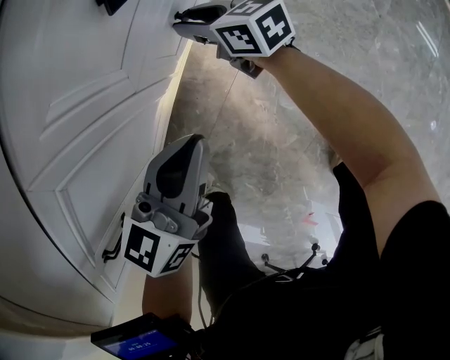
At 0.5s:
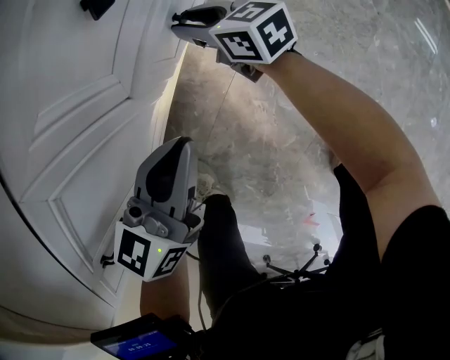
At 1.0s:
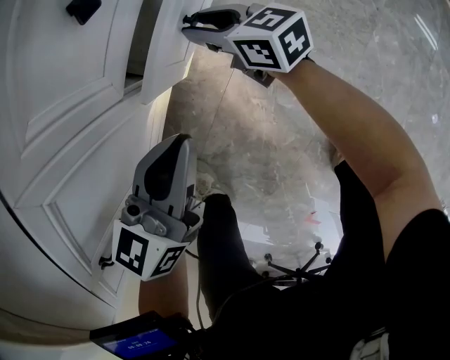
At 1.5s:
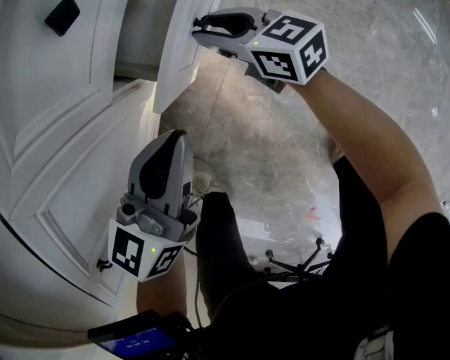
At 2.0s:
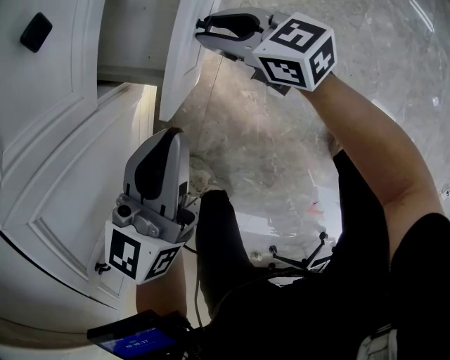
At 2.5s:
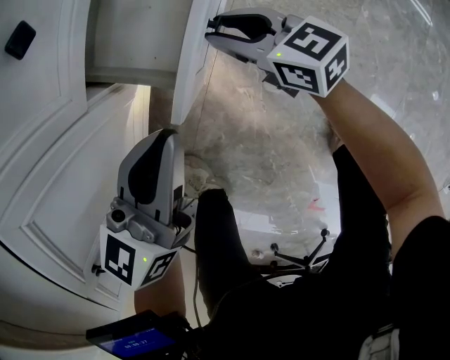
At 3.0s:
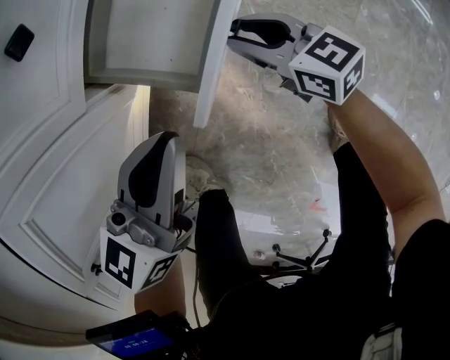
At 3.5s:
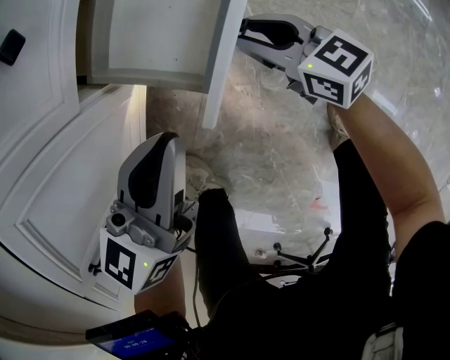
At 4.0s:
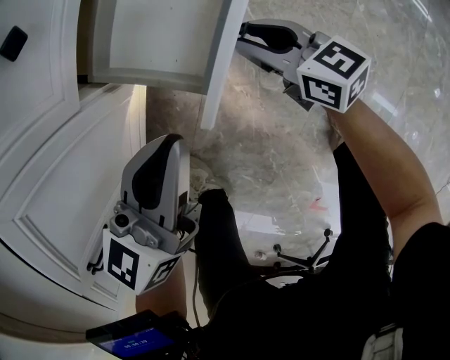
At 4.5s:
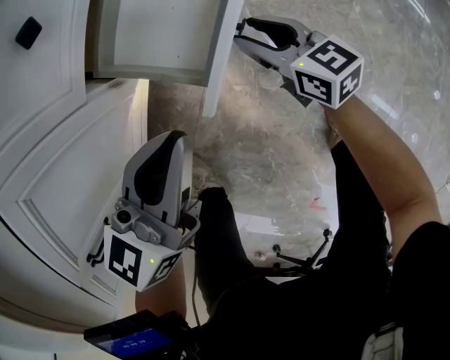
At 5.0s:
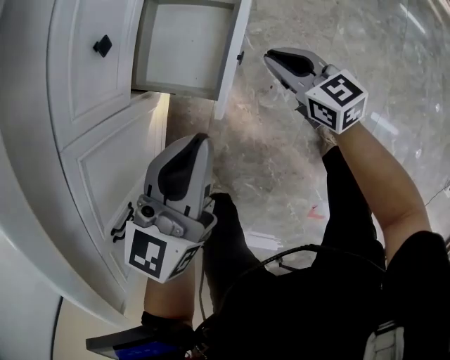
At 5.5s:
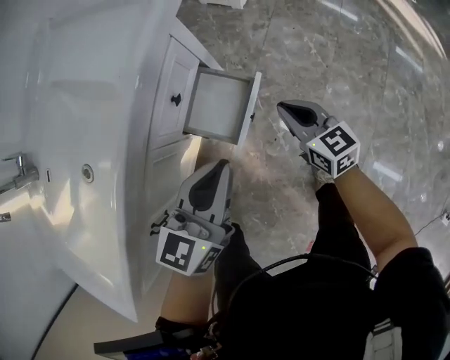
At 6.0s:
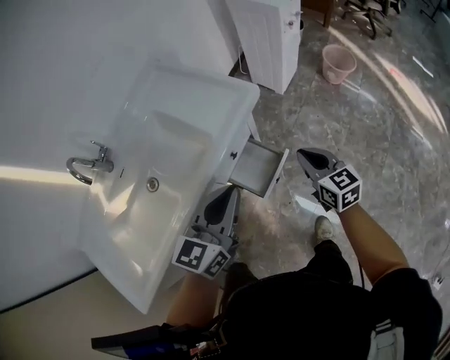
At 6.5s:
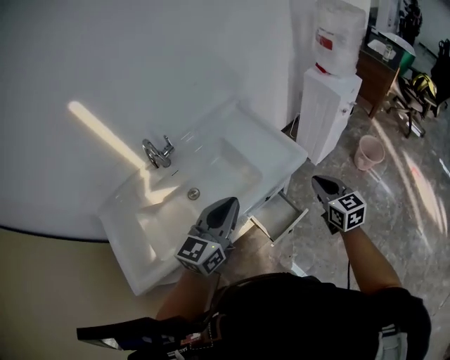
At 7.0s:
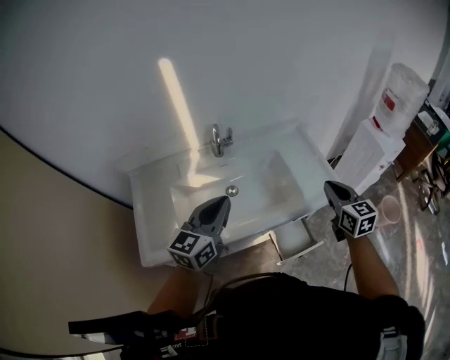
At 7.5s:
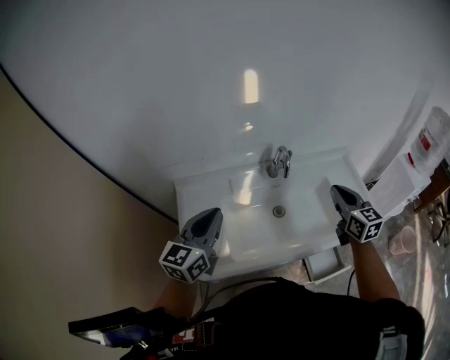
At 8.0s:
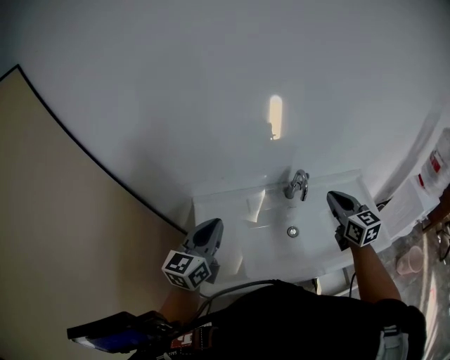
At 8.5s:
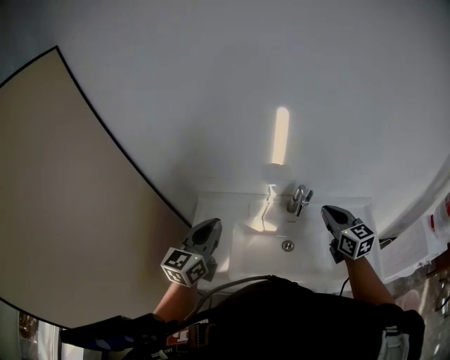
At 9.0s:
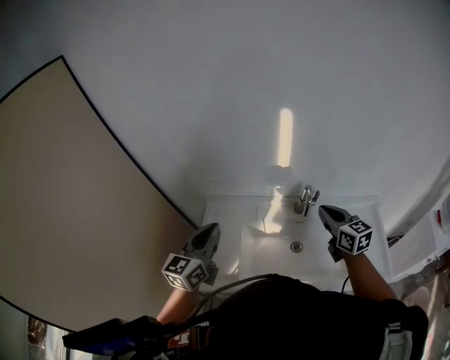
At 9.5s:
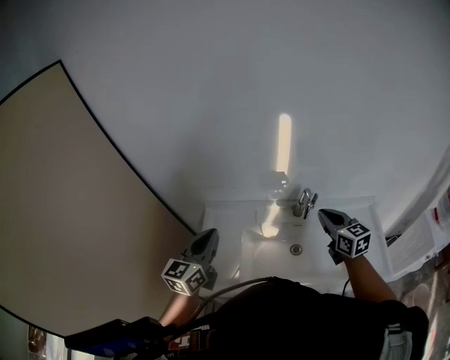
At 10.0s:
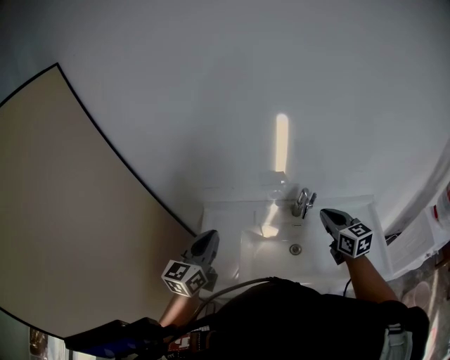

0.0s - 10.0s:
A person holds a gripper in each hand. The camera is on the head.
0.0s - 2.0s: The right gripper travels to the right and backward by some 10 cm.
2.0s - 4.0s: The right gripper goes about 10 cm to the right and backward.
4.0s - 6.0s: Both grippers move upward, some 50 cm. The right gripper rotates some 20 degrees, and closes up.
6.0s - 8.0s: The two grippers travel together, some 60 cm. The left gripper changes its angle by about 50 degrees, while the right gripper swivels approximately 40 degrees.
8.0s - 10.0s: The grippers make only small movements.

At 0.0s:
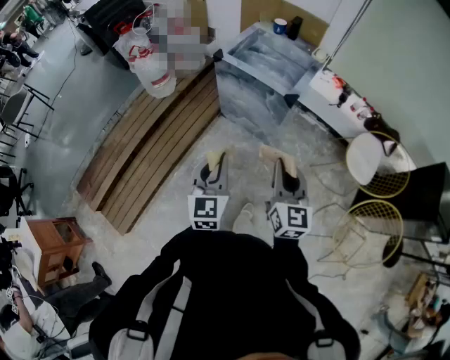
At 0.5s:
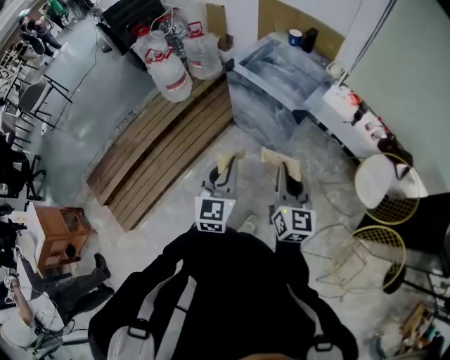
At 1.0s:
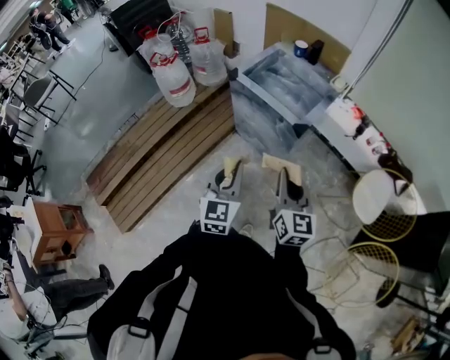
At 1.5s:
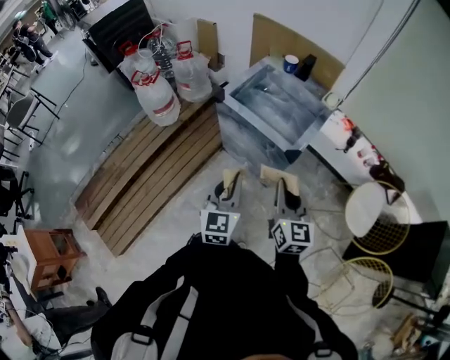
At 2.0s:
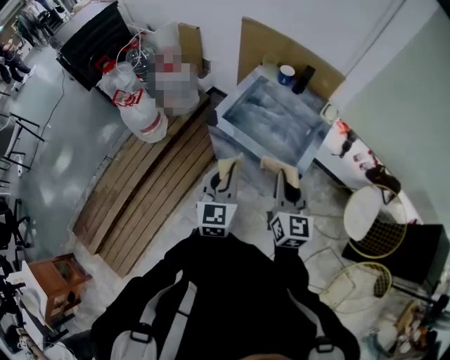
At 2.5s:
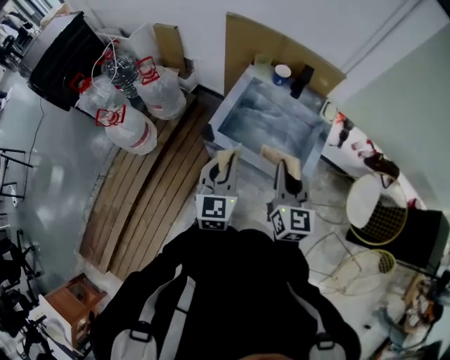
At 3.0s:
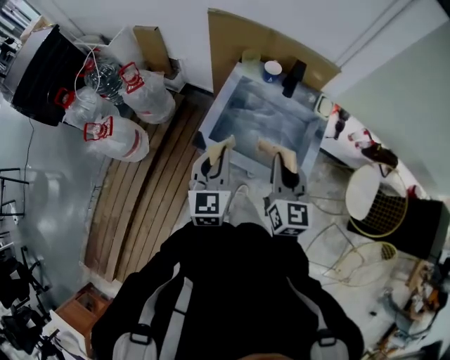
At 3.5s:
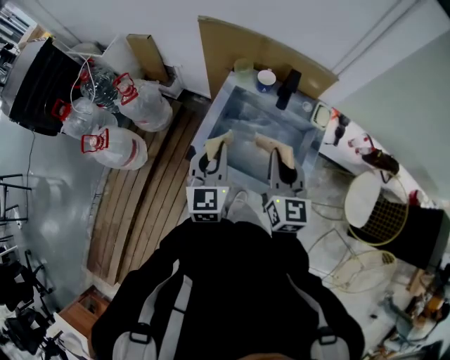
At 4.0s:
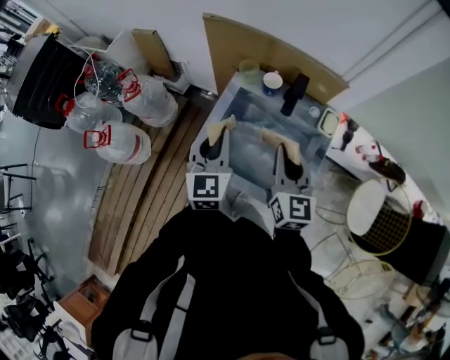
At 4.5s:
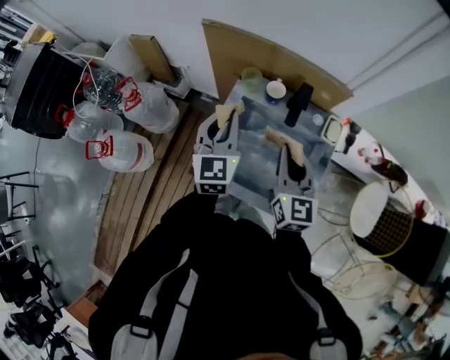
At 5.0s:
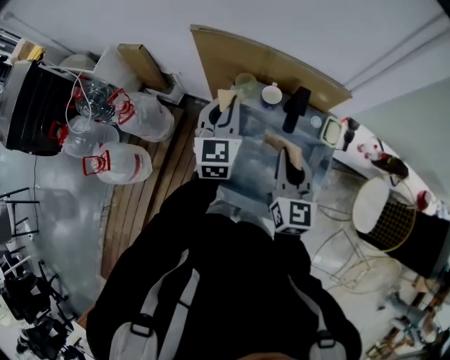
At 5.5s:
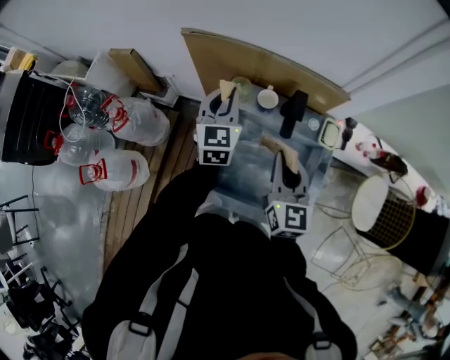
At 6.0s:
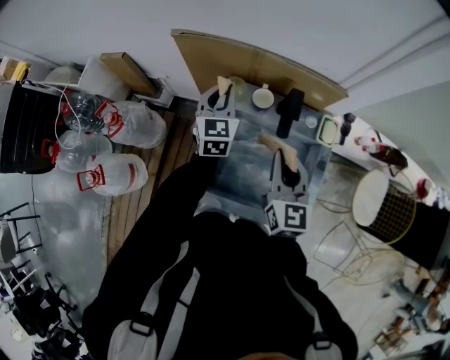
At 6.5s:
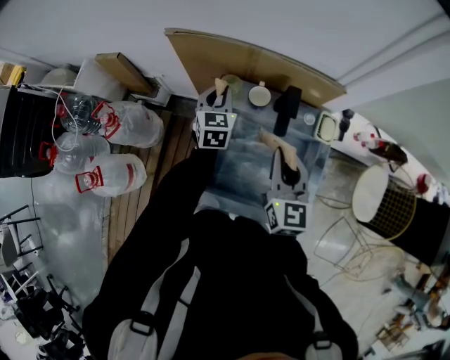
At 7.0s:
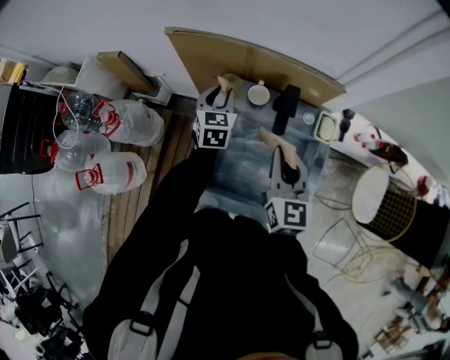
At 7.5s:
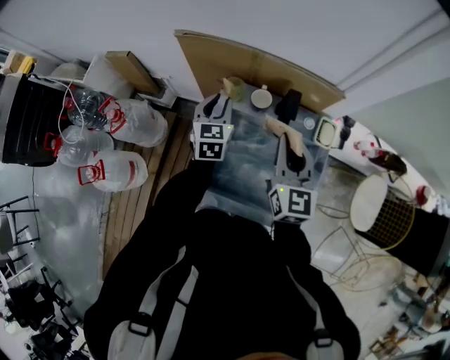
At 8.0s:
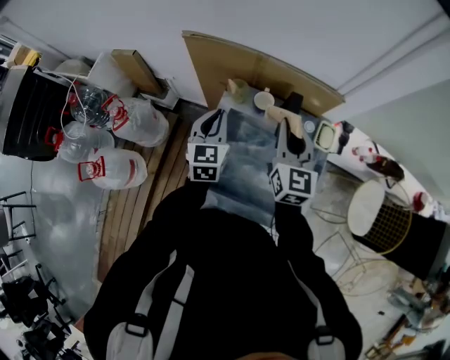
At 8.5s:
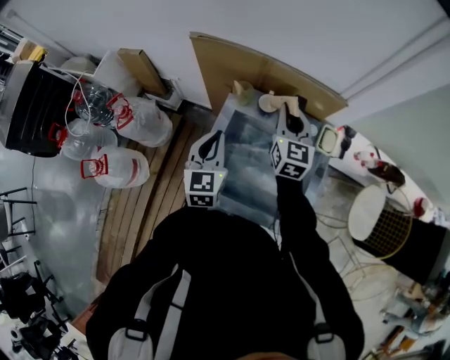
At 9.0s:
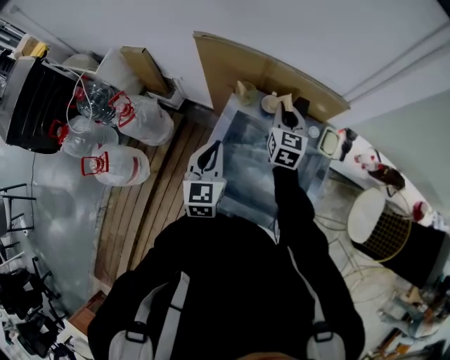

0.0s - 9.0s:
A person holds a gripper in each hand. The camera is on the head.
0.0s - 2.0s: Both grippers travel together forward, about 35 cm.
2.0s - 4.5s: Both grippers travel together forward, some 35 cm.
4.5s - 7.0s: The left gripper moves forward and downward, some 20 cm, while the right gripper travels forward by approximately 5 cm.
7.0s - 9.0s: The right gripper moves forward, some 15 cm, while the left gripper shifts roughly 20 cm backward, and closes up.

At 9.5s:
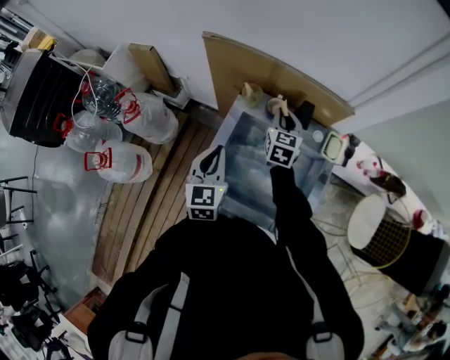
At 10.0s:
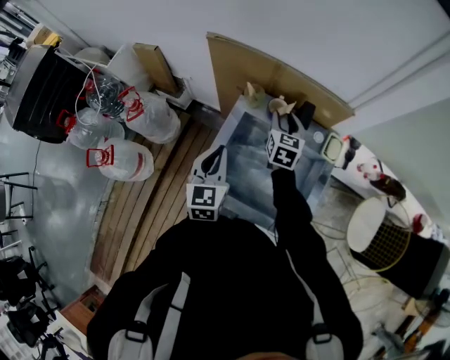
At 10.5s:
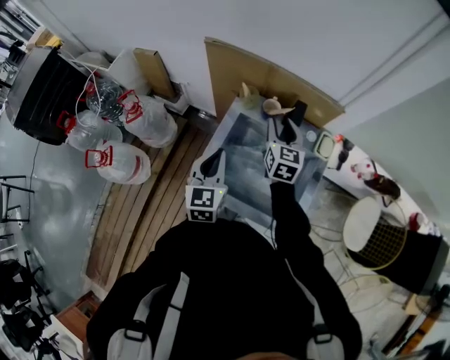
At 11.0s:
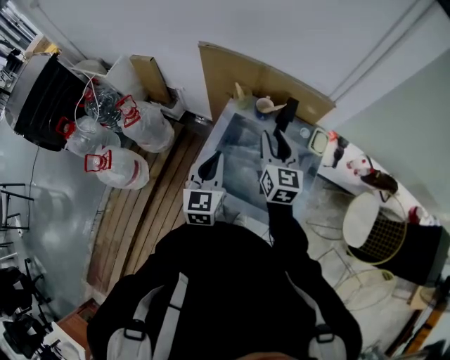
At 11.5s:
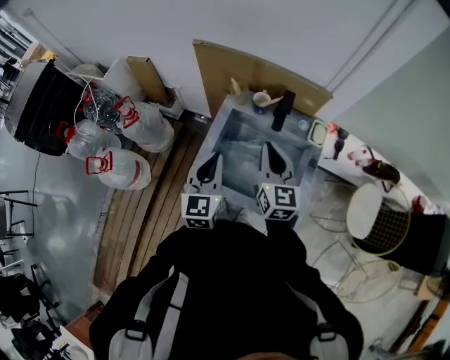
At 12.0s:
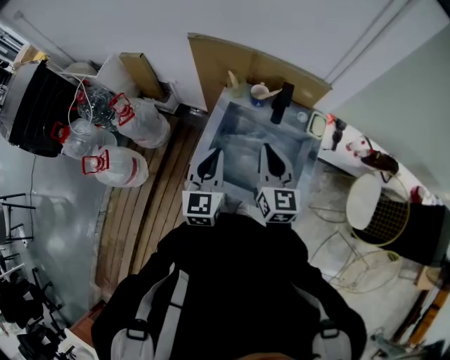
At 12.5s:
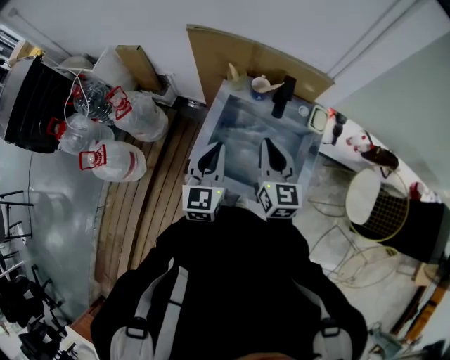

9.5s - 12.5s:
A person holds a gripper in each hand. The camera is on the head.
9.5s - 11.0s: The left gripper moves backward, roughly 5 cm. The right gripper travels backward and upward by roughly 20 cm, and opens its fingers.
11.0s - 12.5s: The right gripper travels backward by some 10 cm, and closes.

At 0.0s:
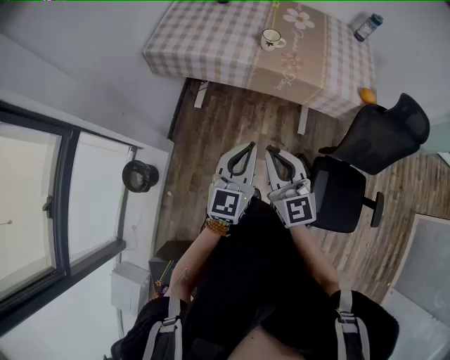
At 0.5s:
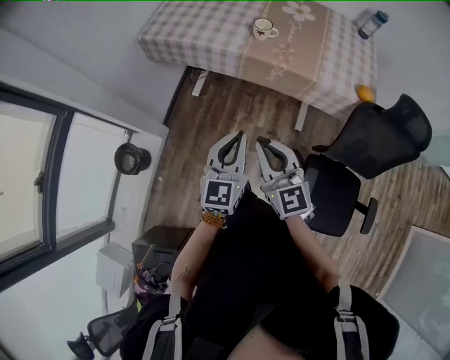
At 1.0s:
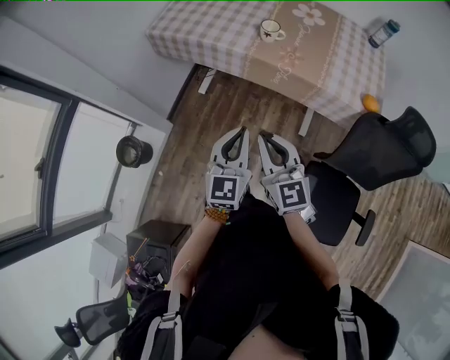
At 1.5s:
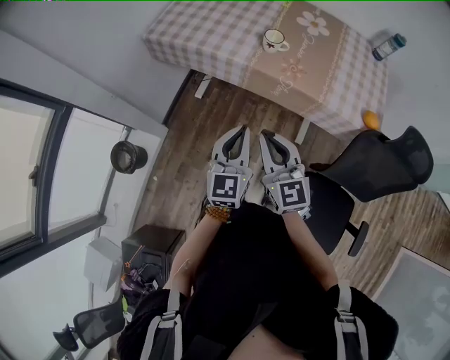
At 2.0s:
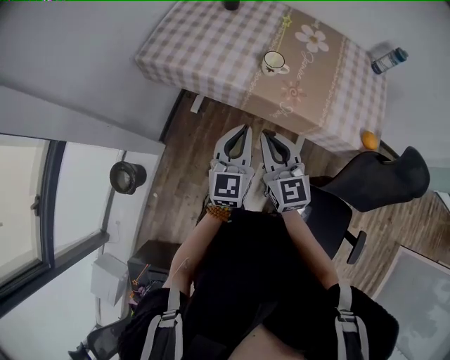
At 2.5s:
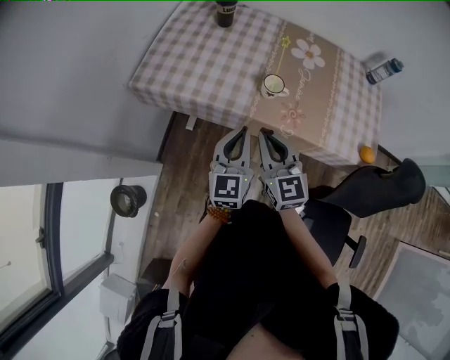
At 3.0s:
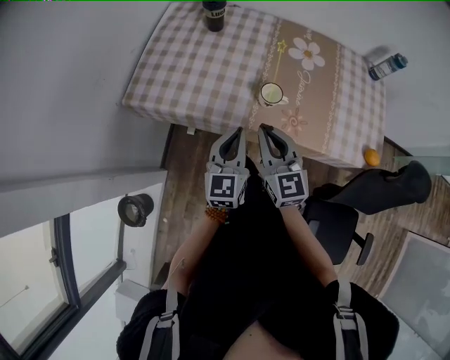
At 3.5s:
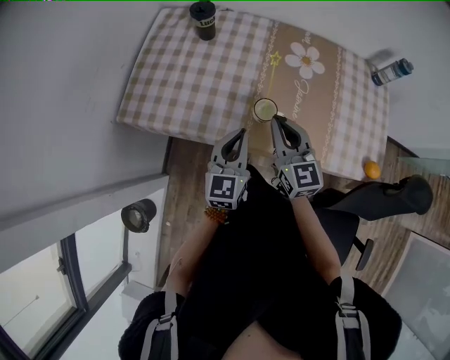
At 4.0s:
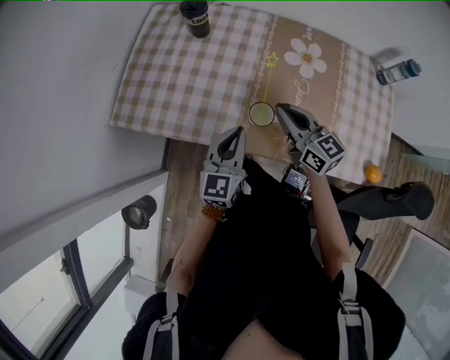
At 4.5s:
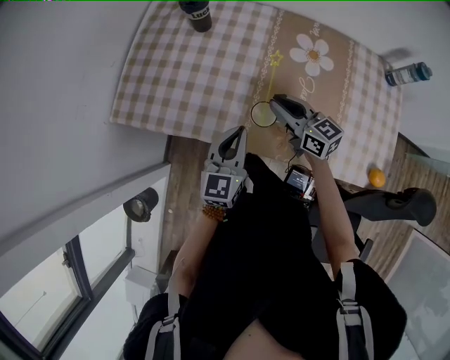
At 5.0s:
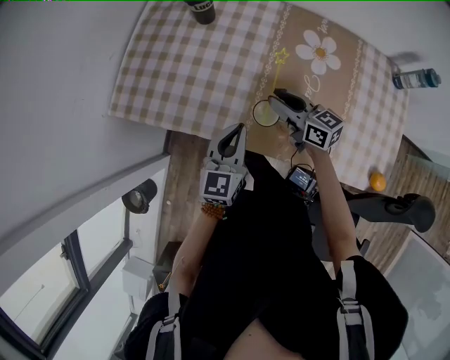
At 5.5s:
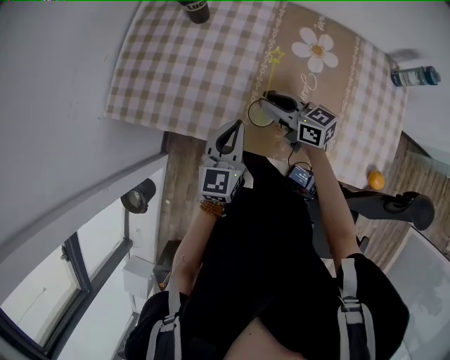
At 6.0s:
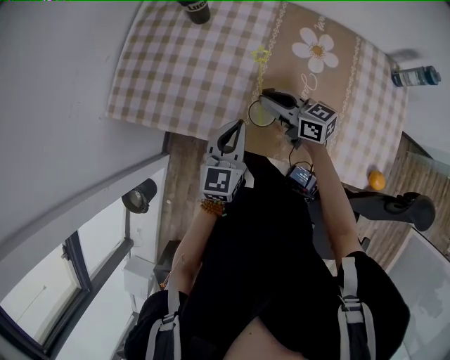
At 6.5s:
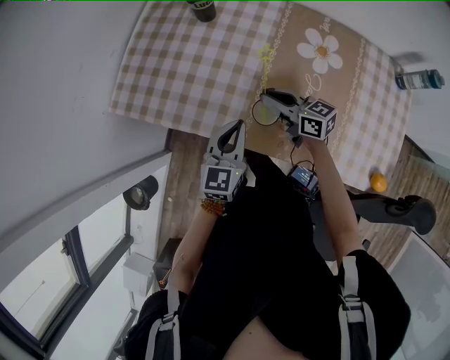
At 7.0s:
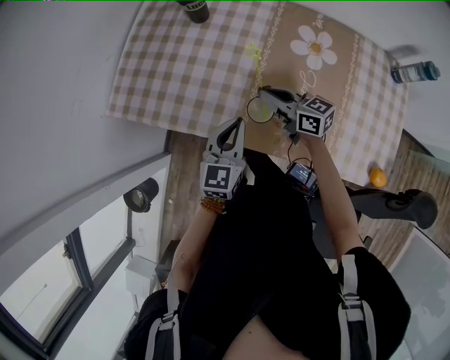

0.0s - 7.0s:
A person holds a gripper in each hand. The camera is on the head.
0.0s - 2.0s: The right gripper shifts roughly 20 cm forward and to the right. Meanwhile the left gripper shifts about 20 cm forward.
2.0s - 3.5s: The grippers both shift forward by some 25 cm.
3.5s - 5.0s: The left gripper is displaced downward by about 5 cm. Meanwhile the right gripper moves downward and forward, about 15 cm, turns by roughly 40 degrees, and opens.
5.0s - 7.0s: The right gripper closes its fingers.
